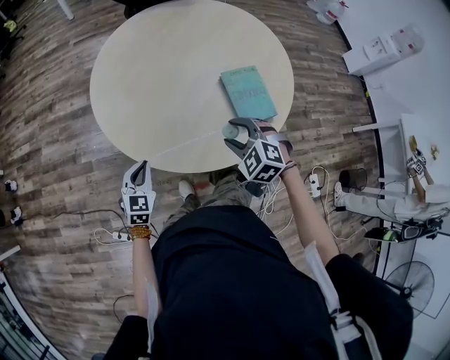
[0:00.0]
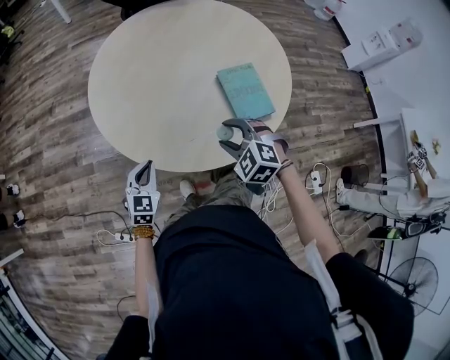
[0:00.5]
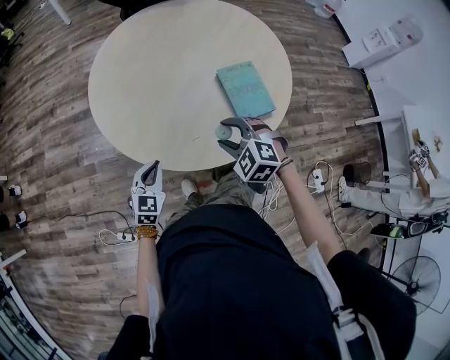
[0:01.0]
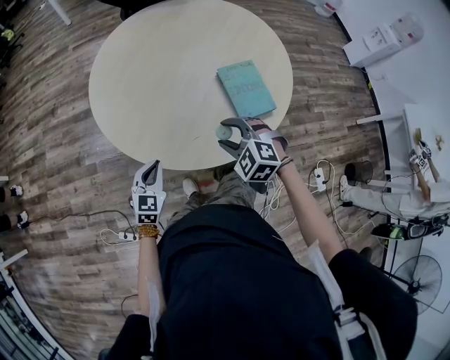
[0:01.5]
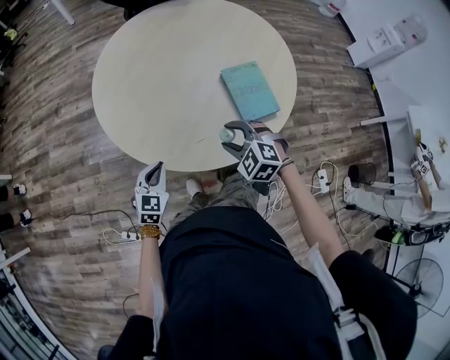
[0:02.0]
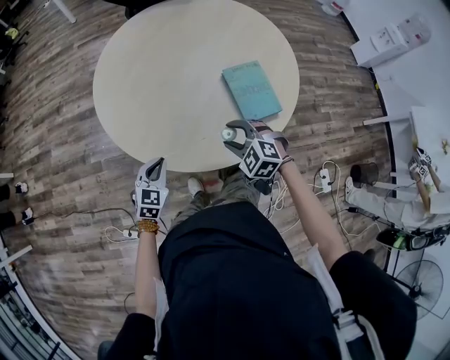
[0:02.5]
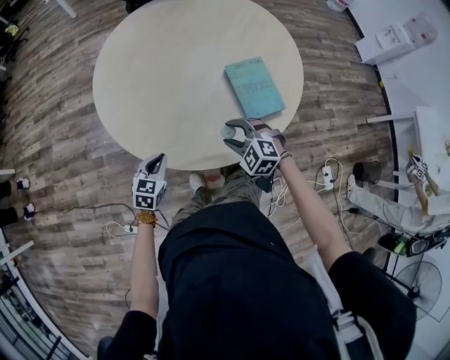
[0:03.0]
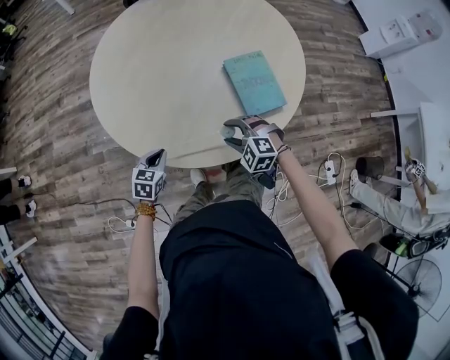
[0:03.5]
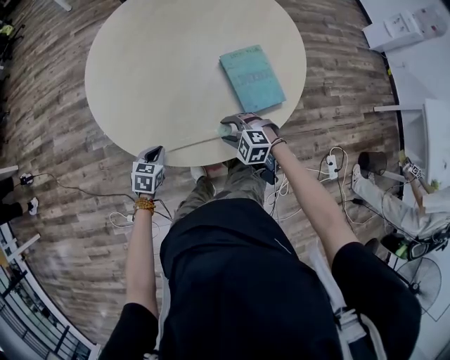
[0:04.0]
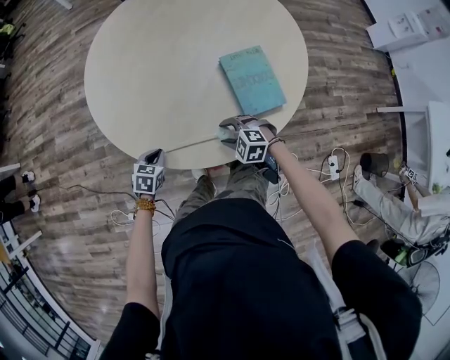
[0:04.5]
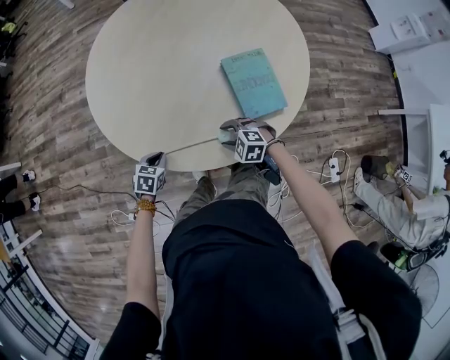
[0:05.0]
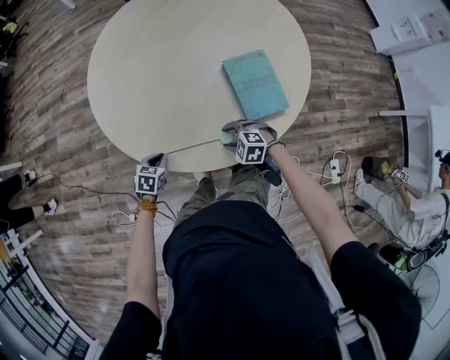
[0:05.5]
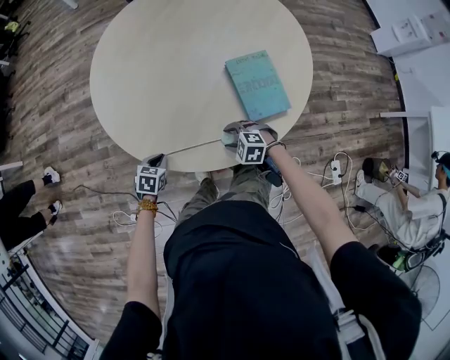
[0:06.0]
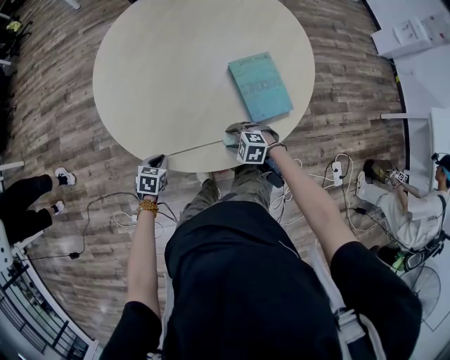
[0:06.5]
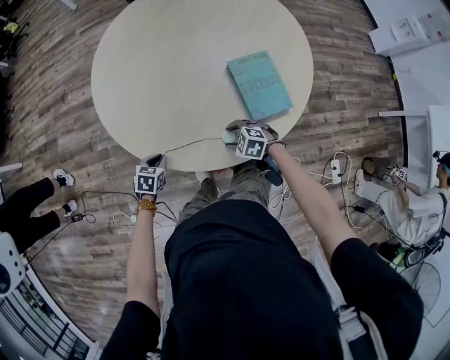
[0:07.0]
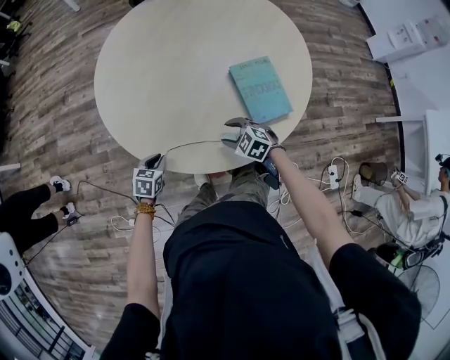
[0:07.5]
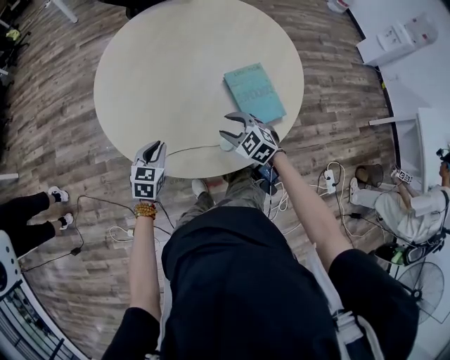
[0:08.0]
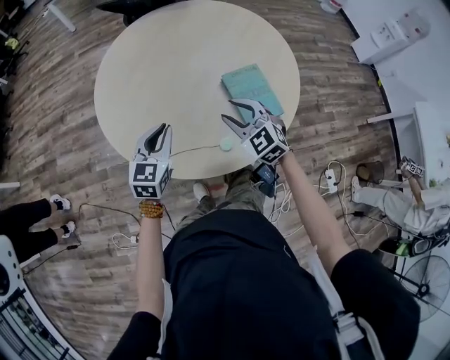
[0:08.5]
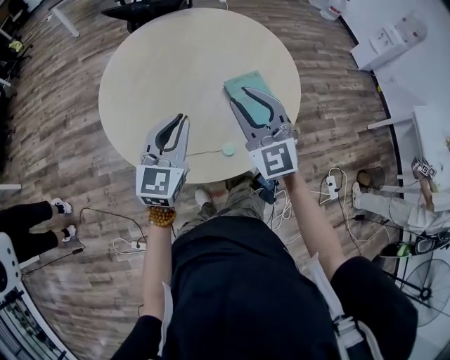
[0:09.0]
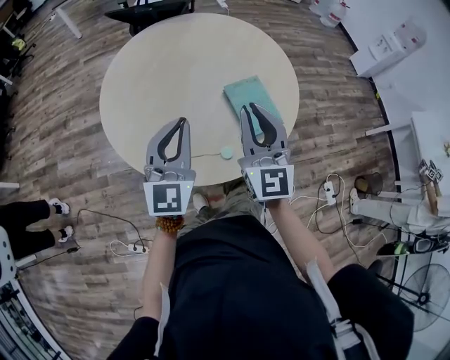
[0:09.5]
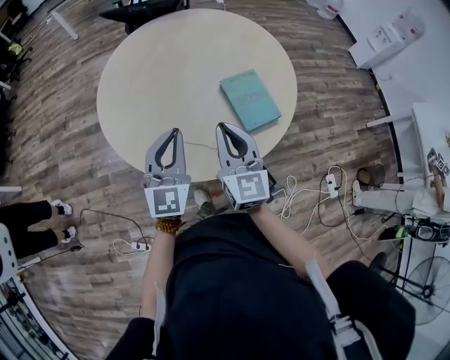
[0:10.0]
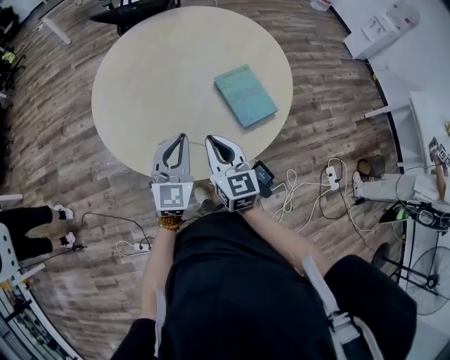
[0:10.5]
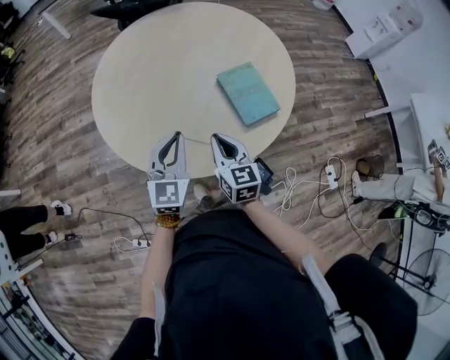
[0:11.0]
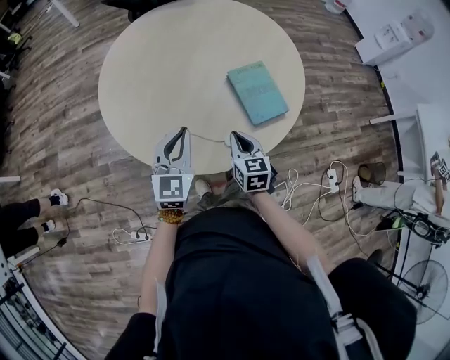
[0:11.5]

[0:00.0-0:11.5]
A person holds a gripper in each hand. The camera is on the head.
0:00.0 to 0:02.0: The grippers move only a little.
0:02.0 to 0:04.0: Both grippers travel together downward, roughly 10 cm. The left gripper changes its angle by roughly 30 degrees.
0:04.0 to 0:06.0: The grippers move only a little.
0:06.0 to 0:07.5: The right gripper ends up roughly 5 cm from where it was.
0:07.5 to 0:09.5: The grippers both shift upward by approximately 35 cm. The right gripper tips its fingers upward by approximately 60 degrees, and closes its fingers; the left gripper points its fingers some 60 degrees further upward.
0:09.5 to 0:11.5: The right gripper goes roughly 25 cm downward, and points its fingers about 40 degrees further downward. The left gripper is displaced downward by approximately 15 cm.

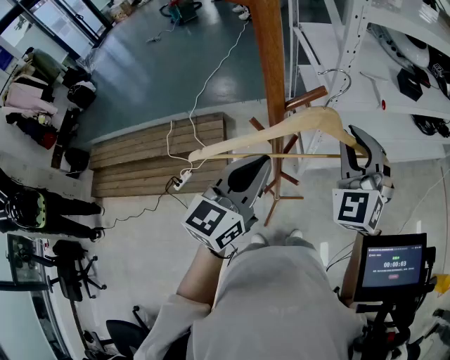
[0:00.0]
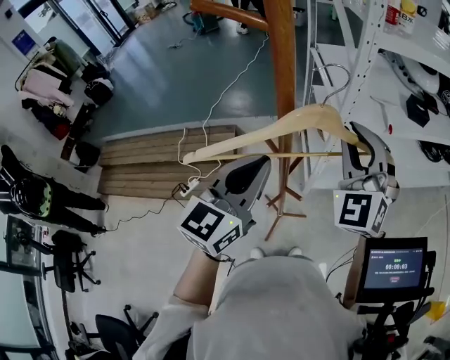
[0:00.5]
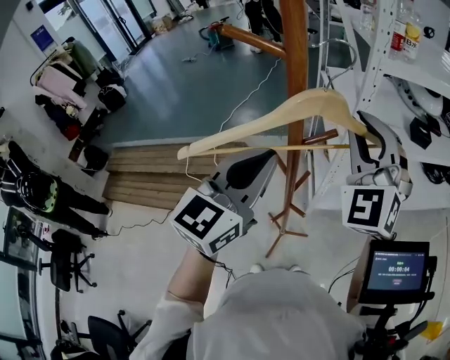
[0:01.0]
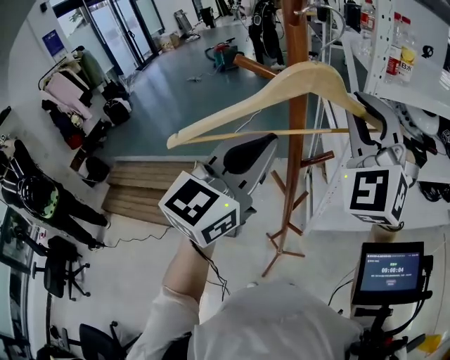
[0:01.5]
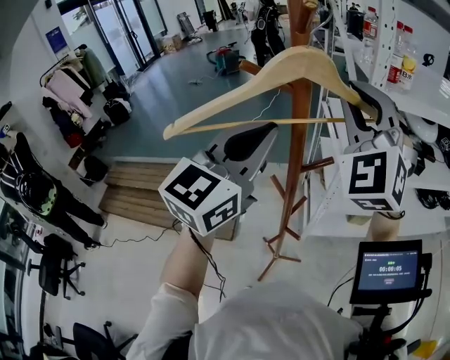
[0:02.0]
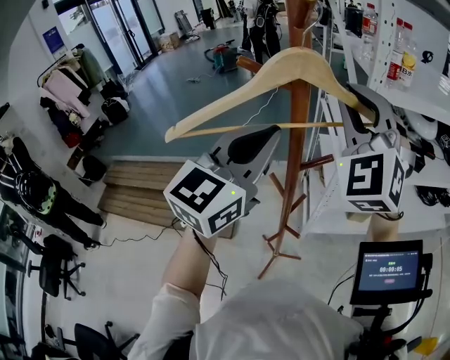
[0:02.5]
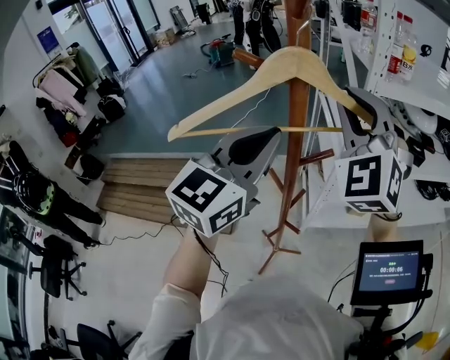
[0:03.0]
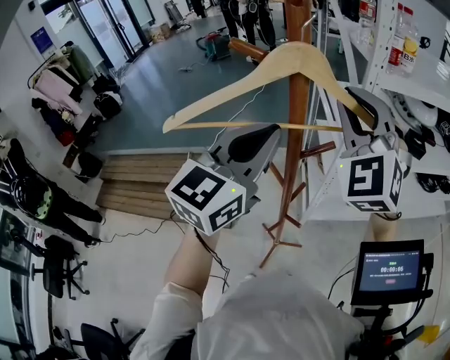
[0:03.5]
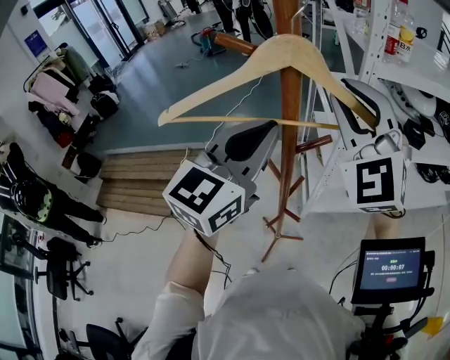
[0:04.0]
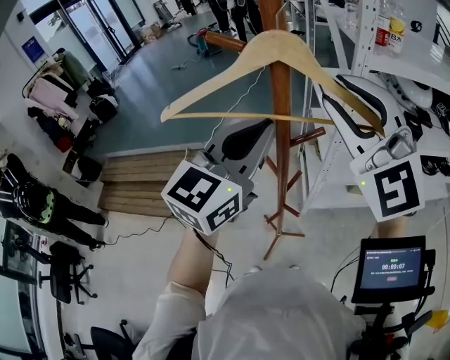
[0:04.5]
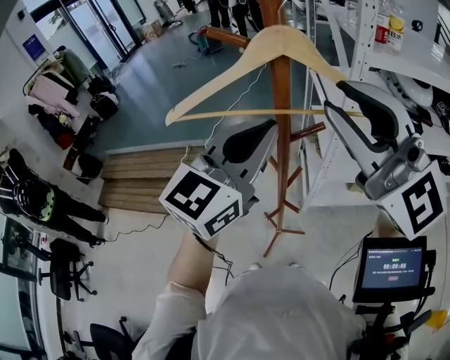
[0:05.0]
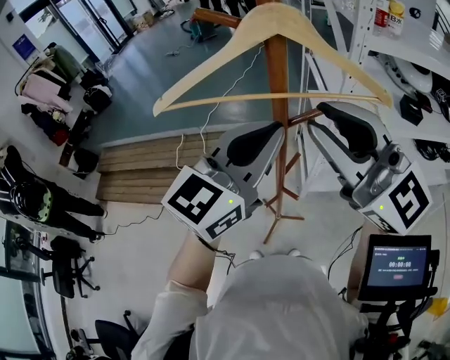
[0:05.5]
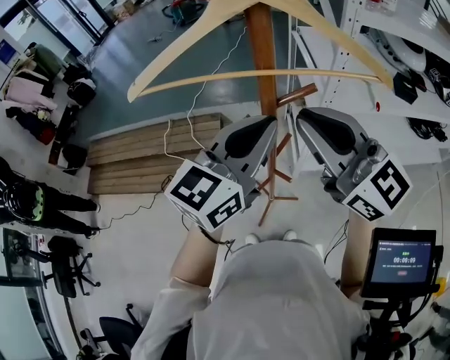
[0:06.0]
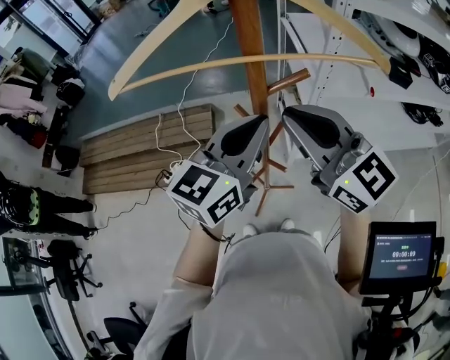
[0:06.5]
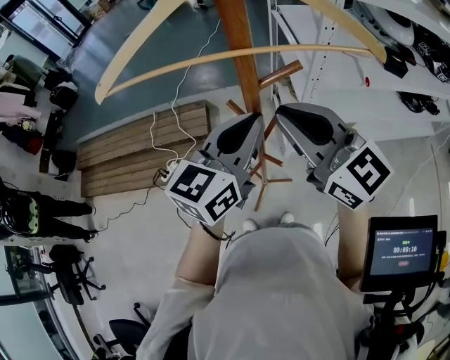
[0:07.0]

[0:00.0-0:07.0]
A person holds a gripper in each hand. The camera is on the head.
0:00.0 to 0:02.0: Both grippers travel together upward, roughly 25 cm. The right gripper turns by some 20 degrees.
0:02.0 to 0:03.5: The right gripper heads downward, covering approximately 5 cm.
0:03.5 to 0:05.0: The right gripper shifts roughly 15 cm backward, and changes its angle by roughly 40 degrees.
0:05.0 to 0:07.0: Both grippers travel together downward, some 15 cm. The right gripper changes its angle by approximately 40 degrees.

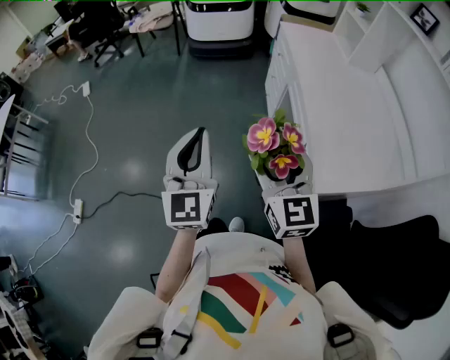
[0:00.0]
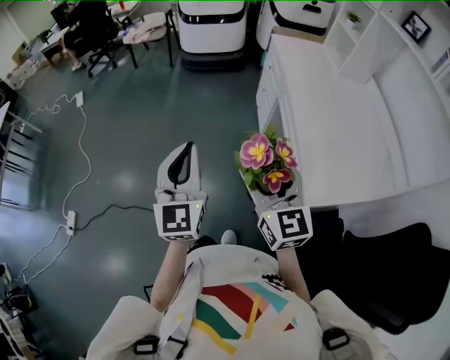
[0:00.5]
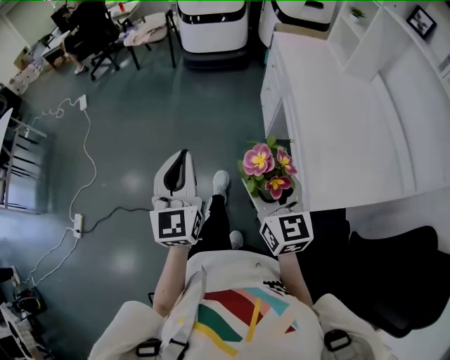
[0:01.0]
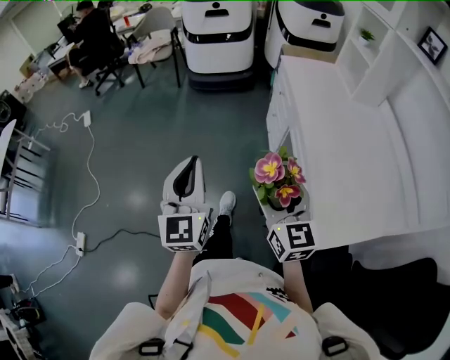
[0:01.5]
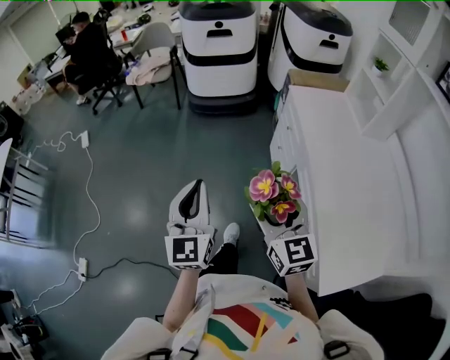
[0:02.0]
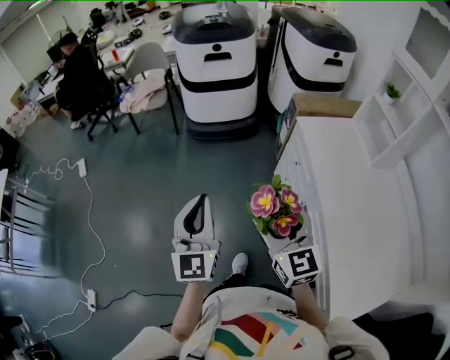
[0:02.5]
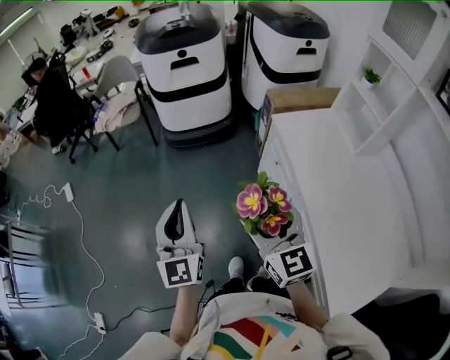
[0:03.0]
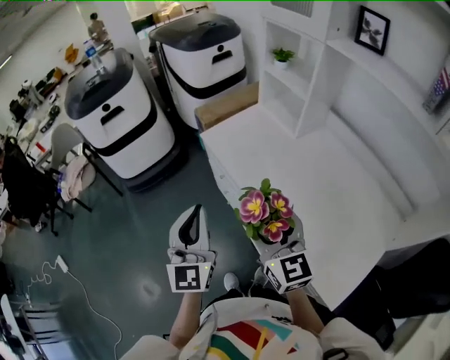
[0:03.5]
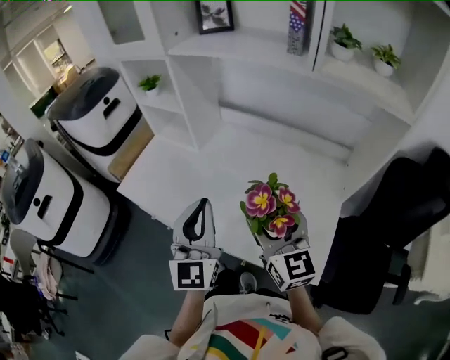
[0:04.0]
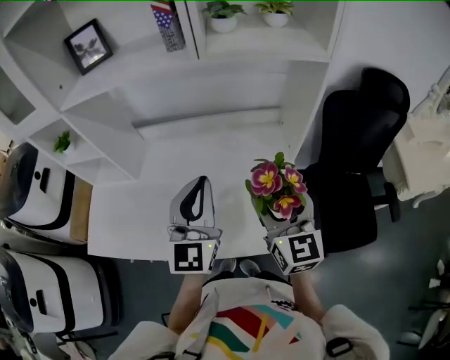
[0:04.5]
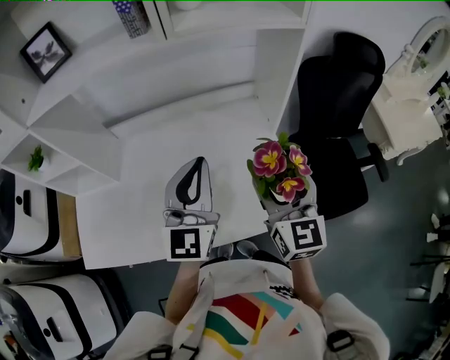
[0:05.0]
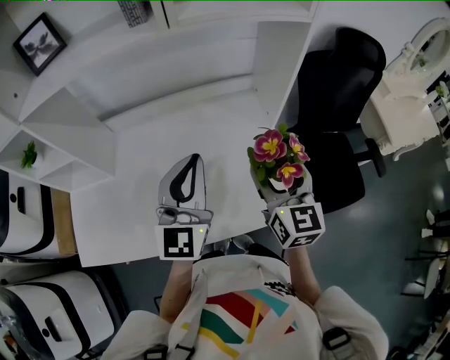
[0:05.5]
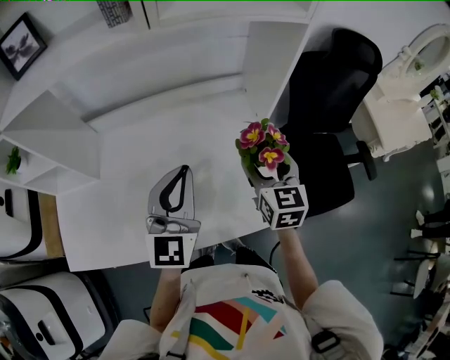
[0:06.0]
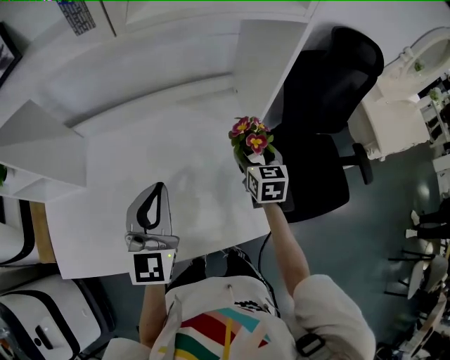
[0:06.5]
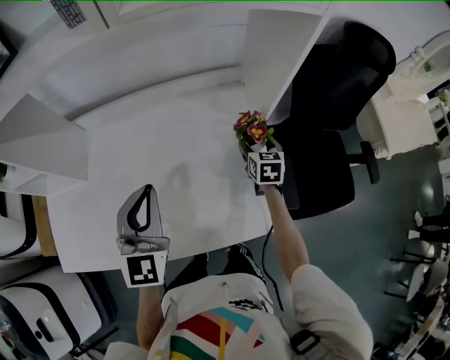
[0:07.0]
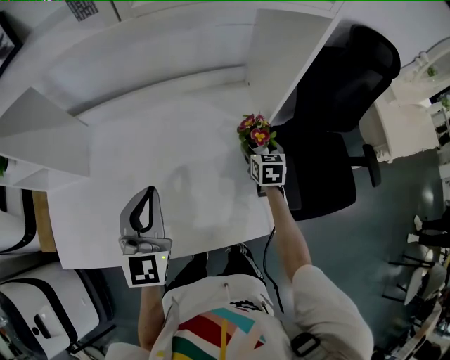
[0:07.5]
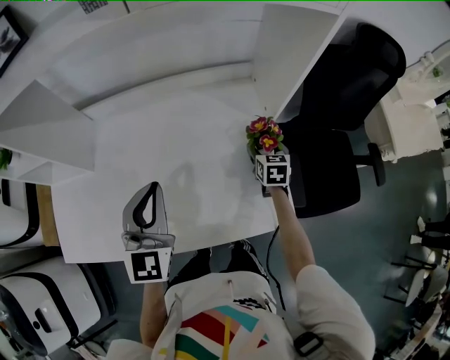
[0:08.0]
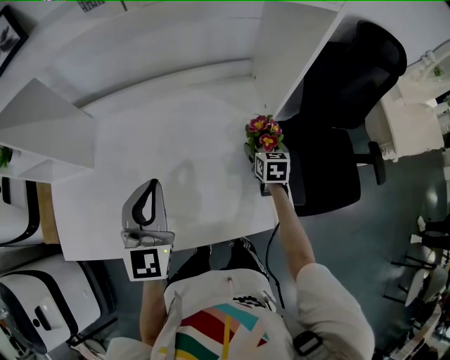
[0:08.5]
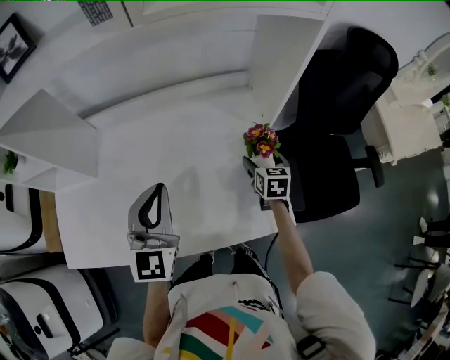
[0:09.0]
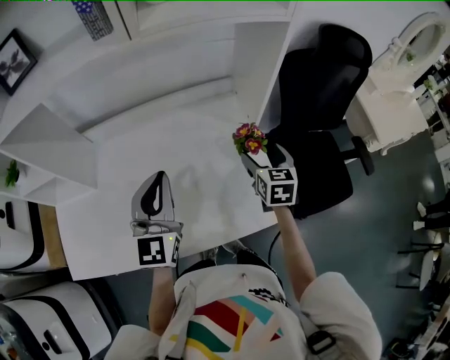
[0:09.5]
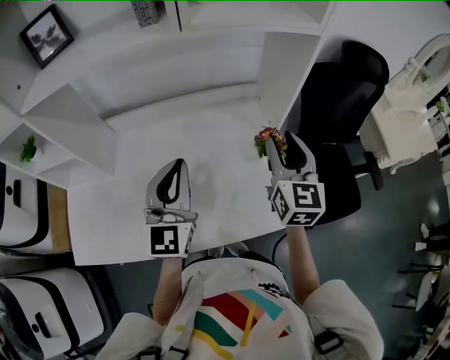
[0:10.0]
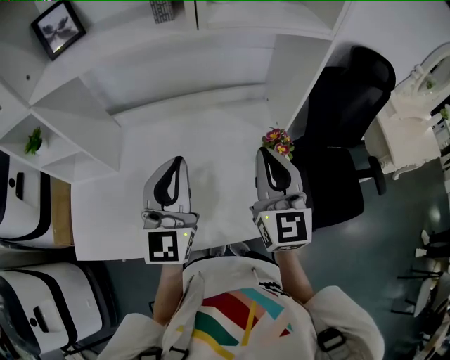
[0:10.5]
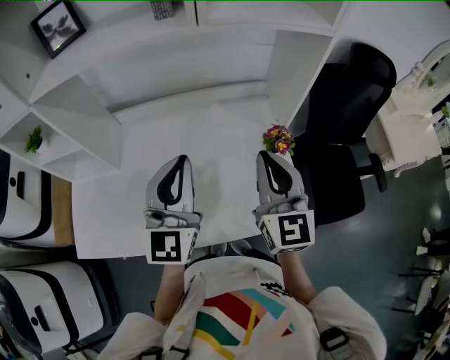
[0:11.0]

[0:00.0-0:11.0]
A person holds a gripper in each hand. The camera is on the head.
0:00.0 to 0:02.0: The grippers both shift forward by about 25 cm.
0:02.0 to 0:03.5: The right gripper shifts by some 25 cm, and turns by approximately 30 degrees; the left gripper changes place by roughly 30 cm, and swivels roughly 30 degrees.
0:03.5 to 0:05.5: Both grippers are carried some 40 cm. The right gripper swivels roughly 80 degrees. Meanwhile the left gripper rotates approximately 80 degrees.
0:05.5 to 0:07.5: The right gripper travels downward and forward by approximately 30 cm, and angles its fingers downward, by approximately 30 degrees. The left gripper goes approximately 10 cm downward.
0:07.5 to 0:09.0: There are only small adjustments of the grippers.
0:09.0 to 0:11.0: The left gripper moves upward, roughly 10 cm, while the right gripper is displaced upward, backward and to the left by approximately 35 cm, tips its fingers upward by approximately 40 degrees, and closes its fingers.
